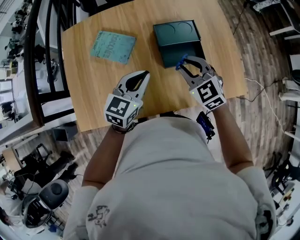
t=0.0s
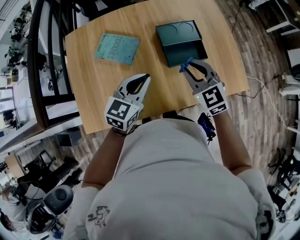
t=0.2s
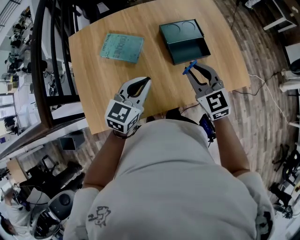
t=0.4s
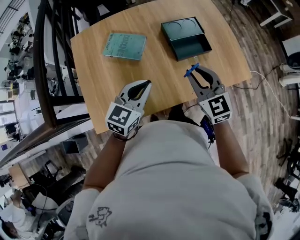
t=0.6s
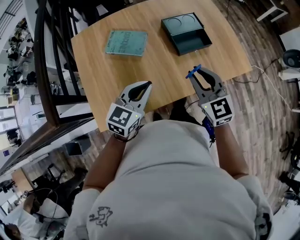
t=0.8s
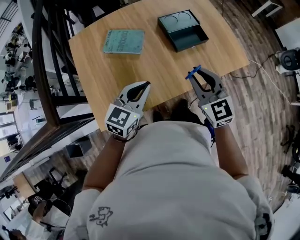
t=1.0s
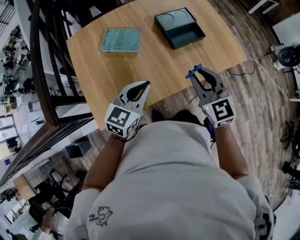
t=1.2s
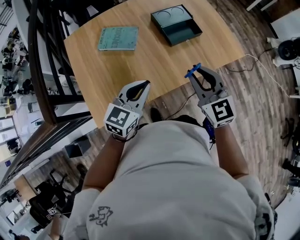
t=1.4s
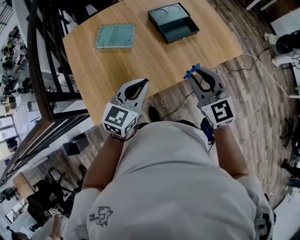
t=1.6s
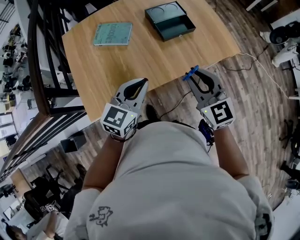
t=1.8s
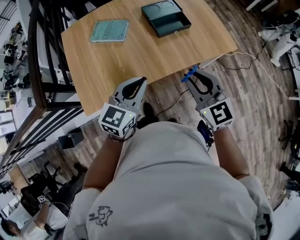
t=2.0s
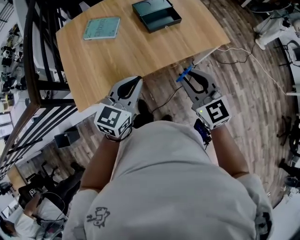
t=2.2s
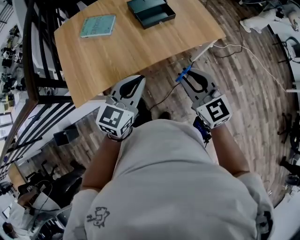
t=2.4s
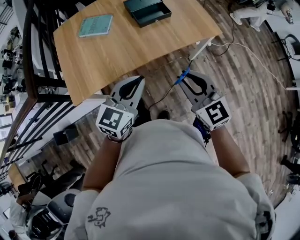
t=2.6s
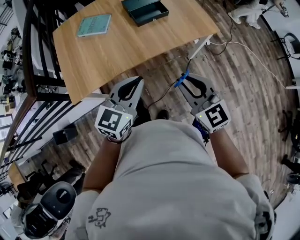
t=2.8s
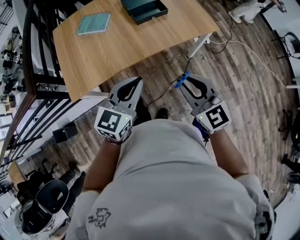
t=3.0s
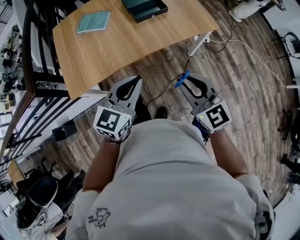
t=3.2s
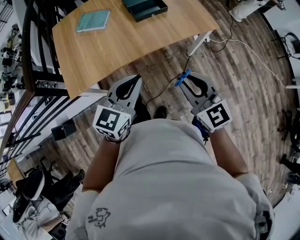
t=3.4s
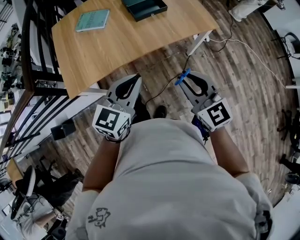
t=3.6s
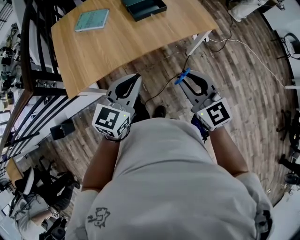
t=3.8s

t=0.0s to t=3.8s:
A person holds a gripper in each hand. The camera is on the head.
t=0.0s to t=1.2s: The left gripper shifts about 20 cm backward and to the left; the right gripper heads backward and upward, covering roughly 20 cm, and rotates roughly 30 degrees.
t=1.2s to t=2.6s: The left gripper is displaced to the right and backward by roughly 25 cm. The right gripper moves backward and to the right, some 25 cm.
t=2.6s to t=3.8s: The grippers stay close to where they were, moving slightly.

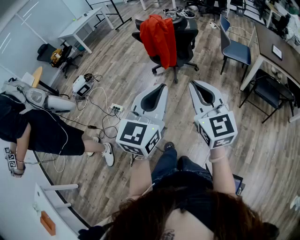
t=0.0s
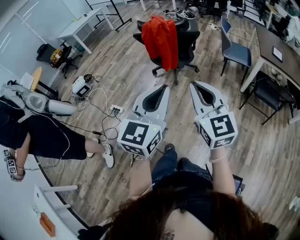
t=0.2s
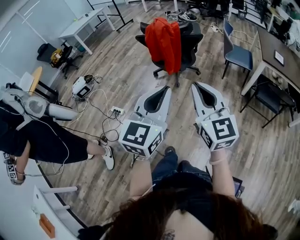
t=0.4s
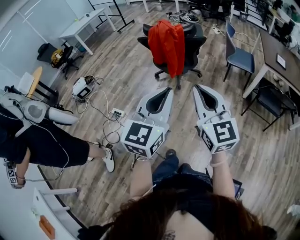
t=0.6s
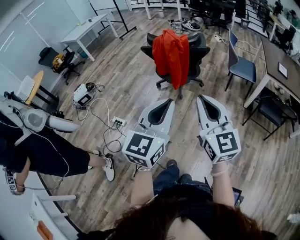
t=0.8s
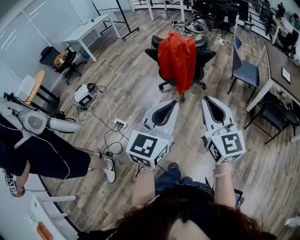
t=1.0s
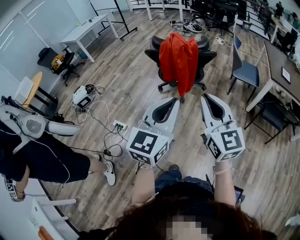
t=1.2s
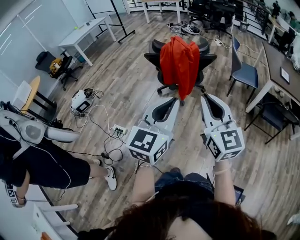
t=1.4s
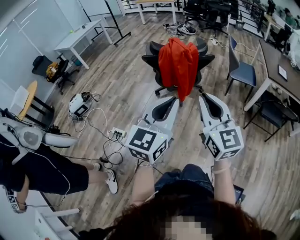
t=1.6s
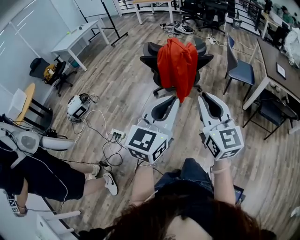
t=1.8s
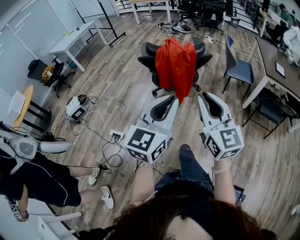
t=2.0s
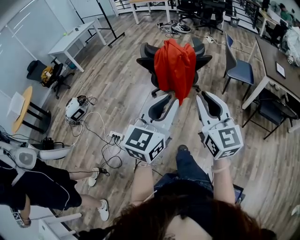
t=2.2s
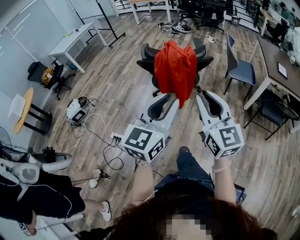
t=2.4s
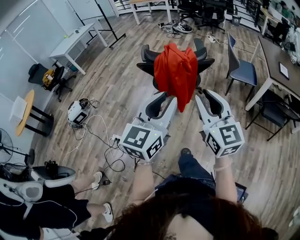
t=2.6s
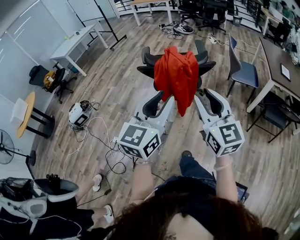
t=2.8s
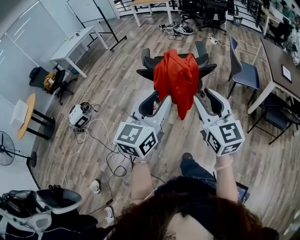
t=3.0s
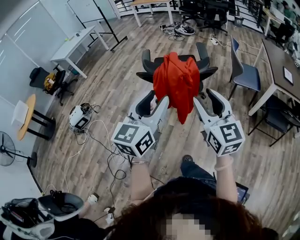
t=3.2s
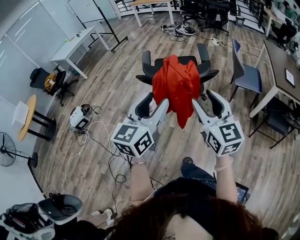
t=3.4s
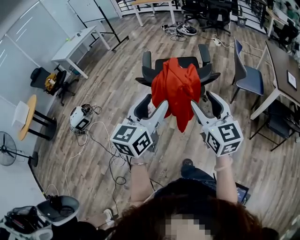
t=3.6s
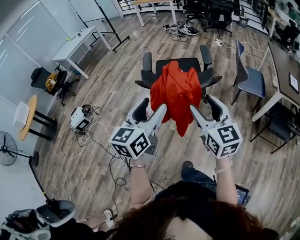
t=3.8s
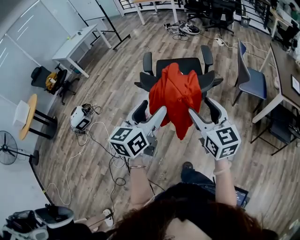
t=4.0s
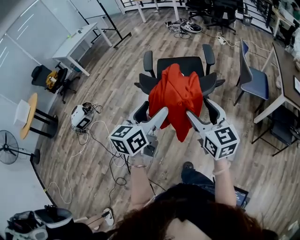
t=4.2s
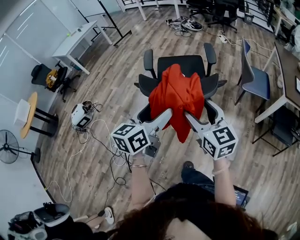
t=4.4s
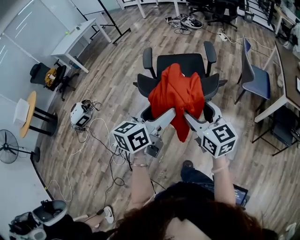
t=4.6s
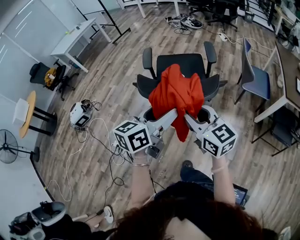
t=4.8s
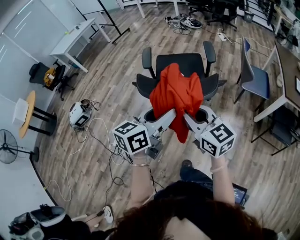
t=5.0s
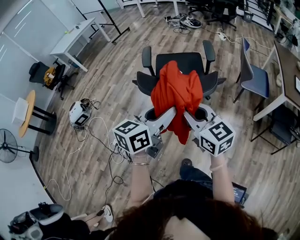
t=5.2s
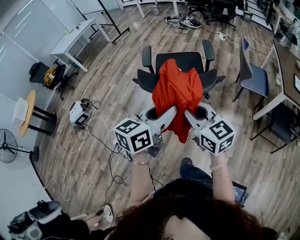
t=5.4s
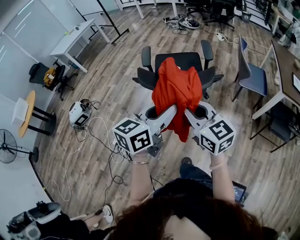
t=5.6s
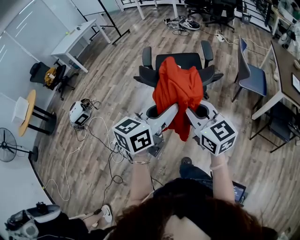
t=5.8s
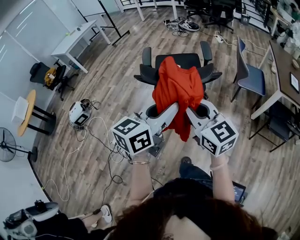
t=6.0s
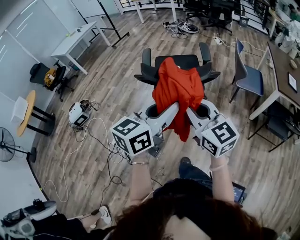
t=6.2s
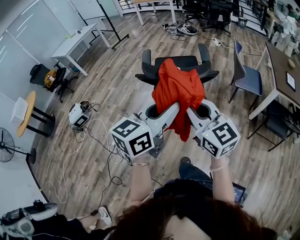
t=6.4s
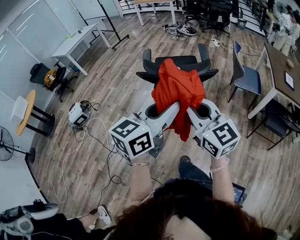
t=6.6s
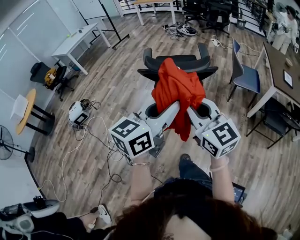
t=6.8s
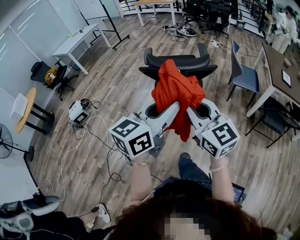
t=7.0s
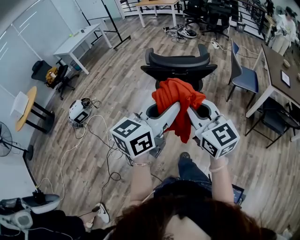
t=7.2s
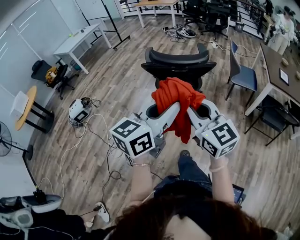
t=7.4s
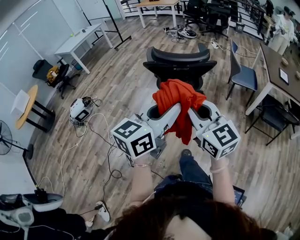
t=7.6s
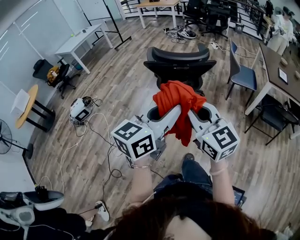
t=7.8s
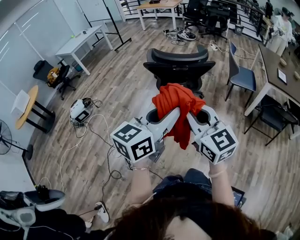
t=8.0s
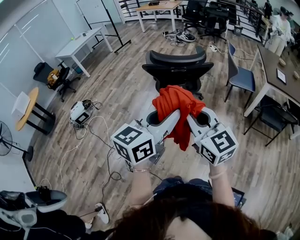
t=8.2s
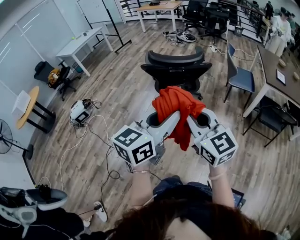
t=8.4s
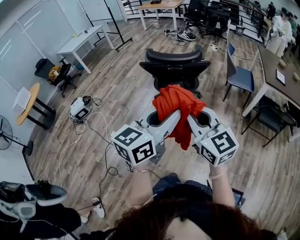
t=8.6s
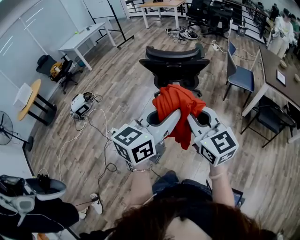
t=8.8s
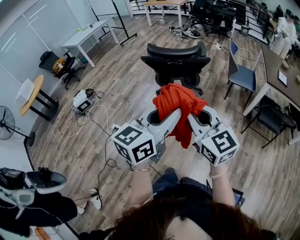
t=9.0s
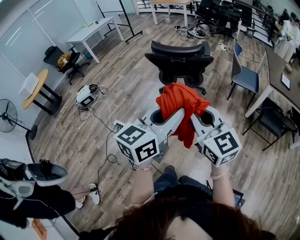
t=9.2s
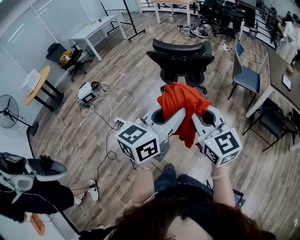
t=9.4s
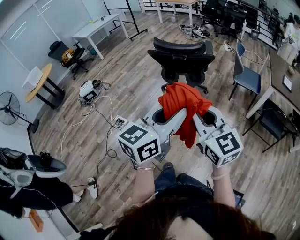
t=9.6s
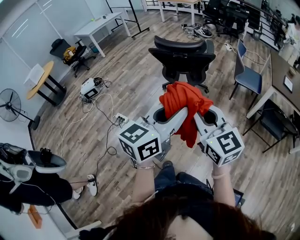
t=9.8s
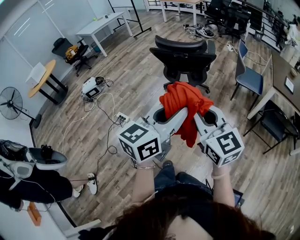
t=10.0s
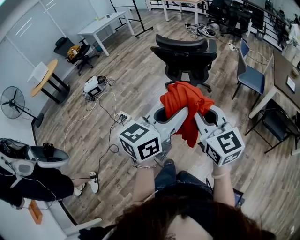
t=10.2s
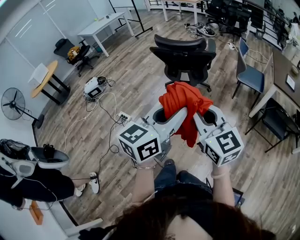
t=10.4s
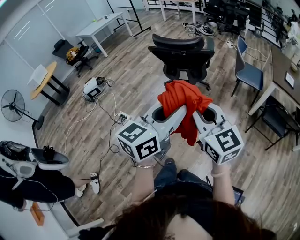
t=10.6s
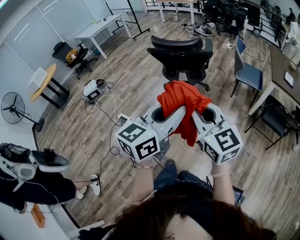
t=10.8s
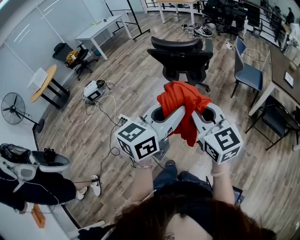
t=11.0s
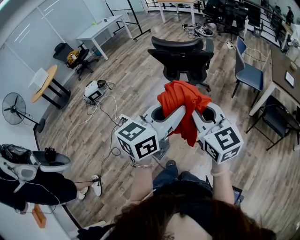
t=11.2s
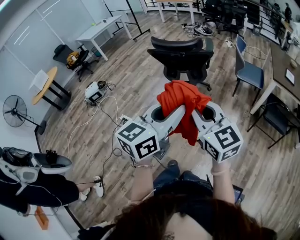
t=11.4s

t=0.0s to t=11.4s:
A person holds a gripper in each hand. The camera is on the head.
t=0.0s to t=1.4s: The two grippers go roughly 20 cm forward and to the left.
t=1.4s to t=2.8s: Both grippers travel together forward, approximately 15 cm. The right gripper opens its fingers.
t=2.8s to t=4.2s: The grippers both shift forward and downward by some 20 cm. The left gripper swivels roughly 20 degrees, and opens its fingers. The right gripper opens its fingers.
t=4.2s to t=5.6s: The right gripper closes up, while the left gripper goes about 5 cm to the right, and closes up.
t=5.6s to t=7.2s: Both grippers travel together backward and upward, about 20 cm.
t=7.2s to t=8.6s: Both grippers move backward and to the right, approximately 15 cm.
t=8.6s to t=10.0s: The grippers both shift backward and to the right by some 10 cm.
t=10.0s to t=11.4s: The grippers stay close to where they were, moving slightly.

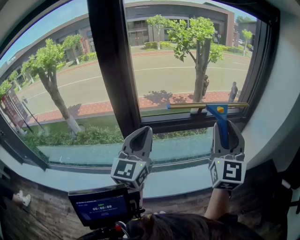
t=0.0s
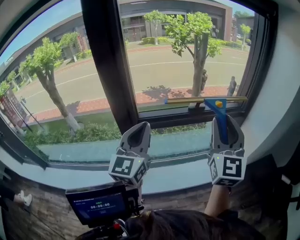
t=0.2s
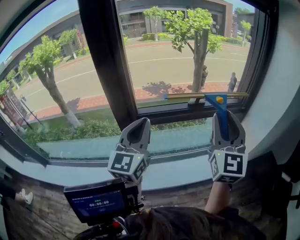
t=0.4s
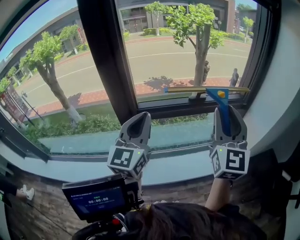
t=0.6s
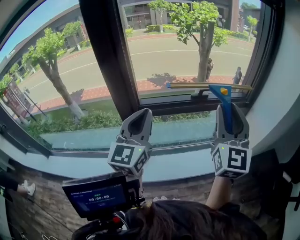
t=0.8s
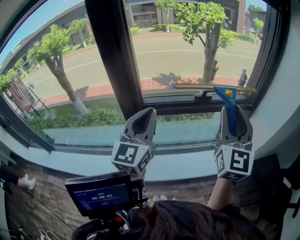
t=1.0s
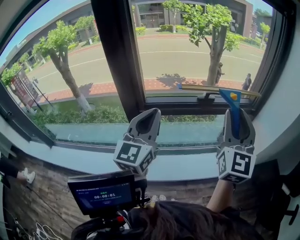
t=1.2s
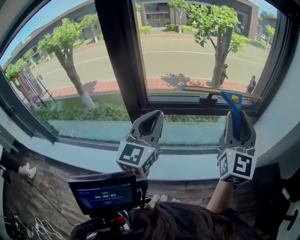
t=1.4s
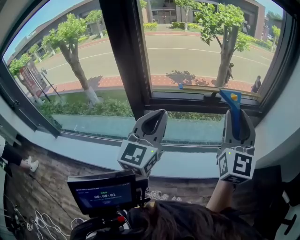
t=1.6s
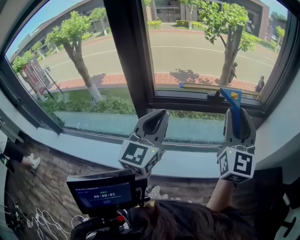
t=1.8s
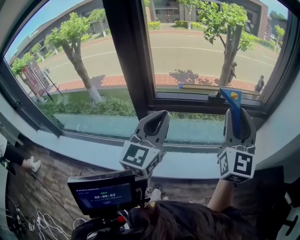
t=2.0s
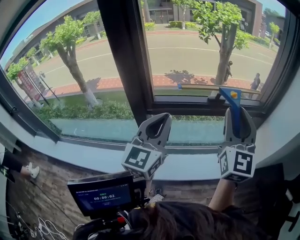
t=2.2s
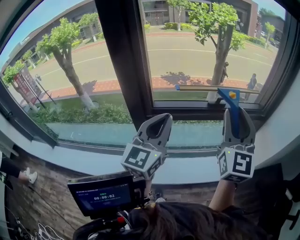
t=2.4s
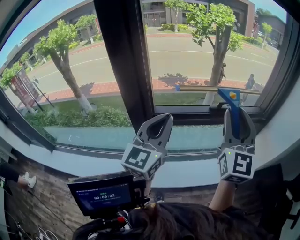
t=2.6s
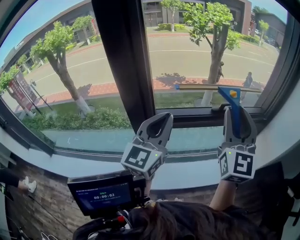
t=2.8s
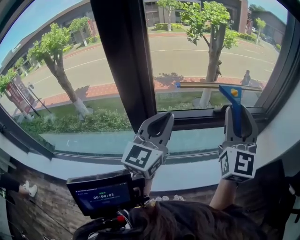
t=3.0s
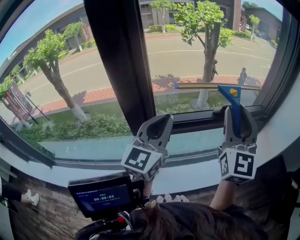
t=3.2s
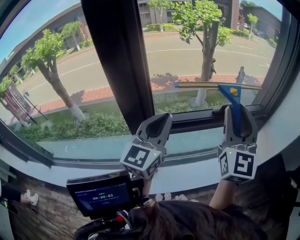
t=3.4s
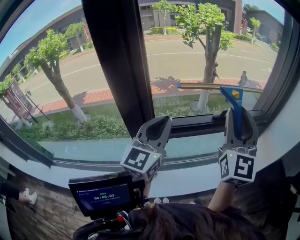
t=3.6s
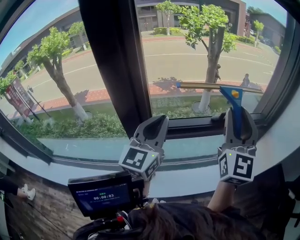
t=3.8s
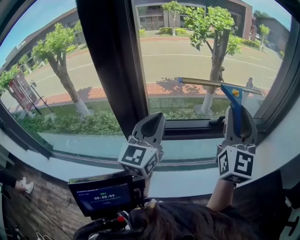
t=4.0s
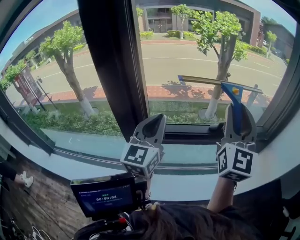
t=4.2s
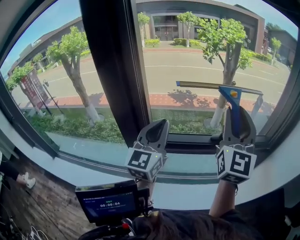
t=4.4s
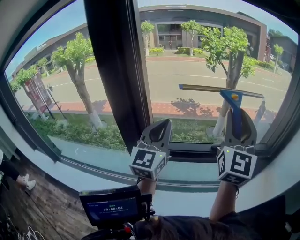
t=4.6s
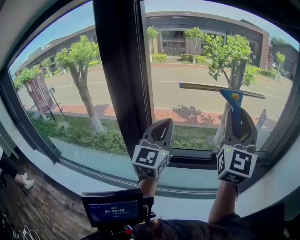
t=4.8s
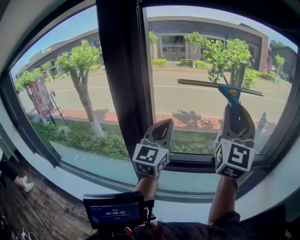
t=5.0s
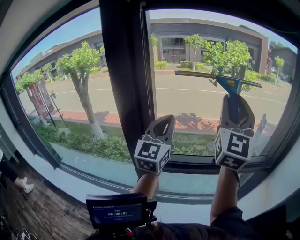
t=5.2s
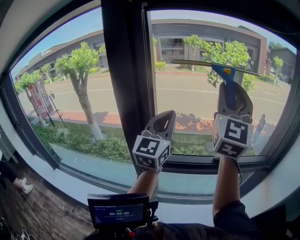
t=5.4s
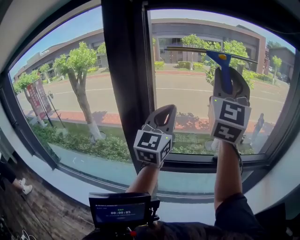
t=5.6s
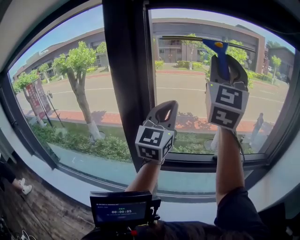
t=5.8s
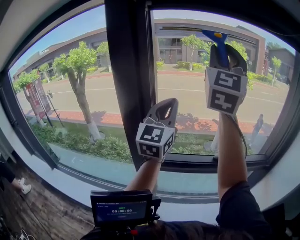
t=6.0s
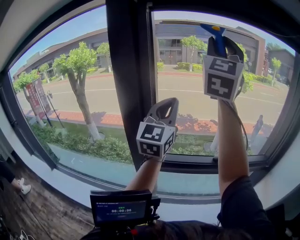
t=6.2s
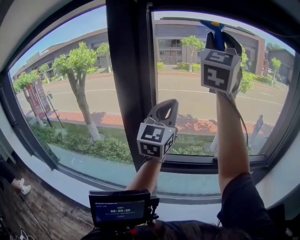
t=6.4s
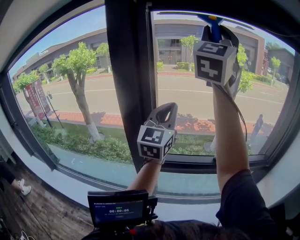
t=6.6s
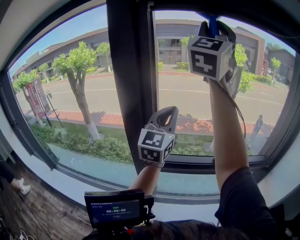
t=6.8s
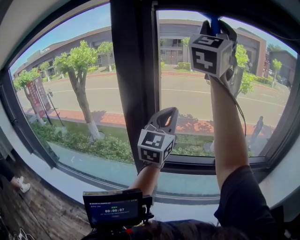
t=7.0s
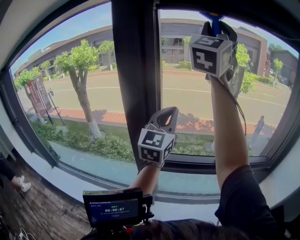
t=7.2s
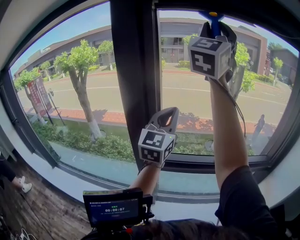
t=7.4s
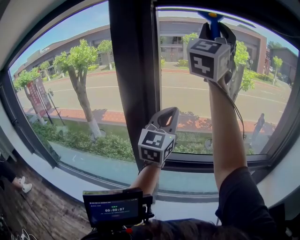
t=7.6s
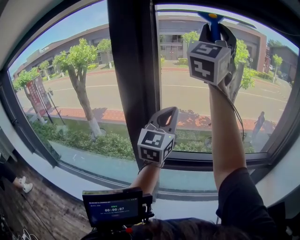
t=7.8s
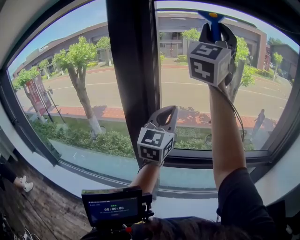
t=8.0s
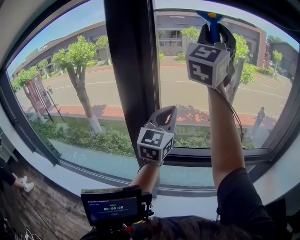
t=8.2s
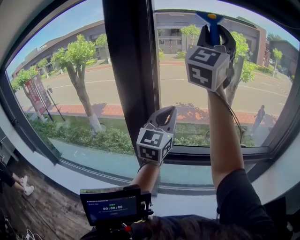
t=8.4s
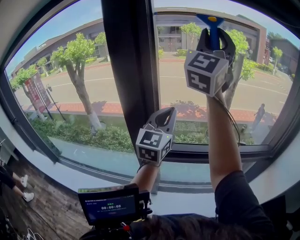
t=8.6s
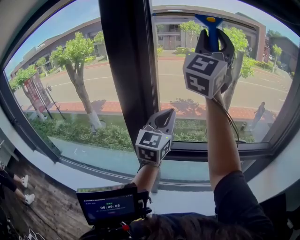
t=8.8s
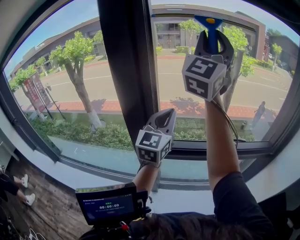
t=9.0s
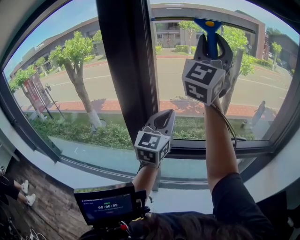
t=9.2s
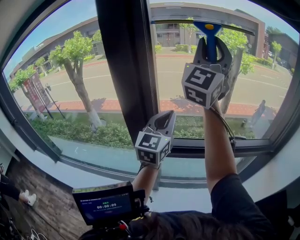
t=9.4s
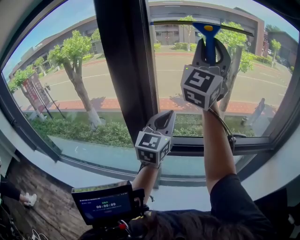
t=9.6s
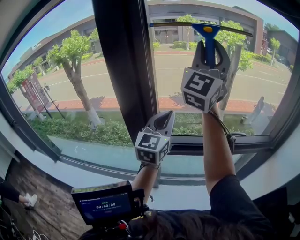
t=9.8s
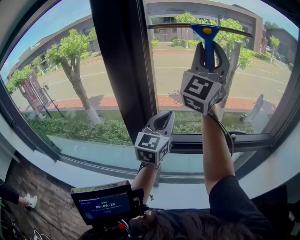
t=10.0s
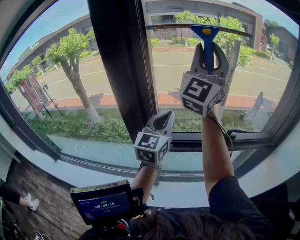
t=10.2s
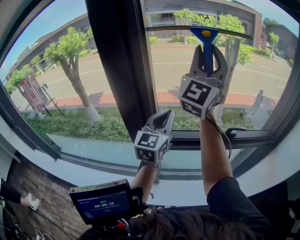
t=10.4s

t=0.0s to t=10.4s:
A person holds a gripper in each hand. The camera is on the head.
t=0.0s to t=1.4s: The grippers make only small movements.
t=1.4s to t=3.0s: The left gripper shifts approximately 10 cm forward and to the left, while the right gripper goes about 15 cm to the left and forward.
t=3.0s to t=4.4s: Both grippers move forward, roughly 10 cm.
t=4.4s to t=6.0s: The left gripper goes approximately 15 cm upward, while the right gripper shifts roughly 25 cm upward and to the left.
t=6.0s to t=7.4s: The right gripper heads upward, covering about 5 cm.
t=7.4s to t=9.0s: Both grippers travel together downward, roughly 5 cm.
t=9.0s to t=10.4s: The left gripper is displaced downward by about 5 cm. The right gripper heads downward, covering roughly 10 cm.
